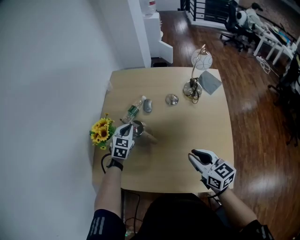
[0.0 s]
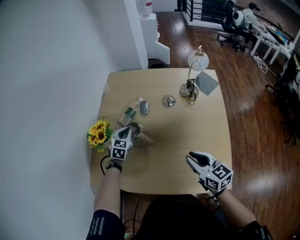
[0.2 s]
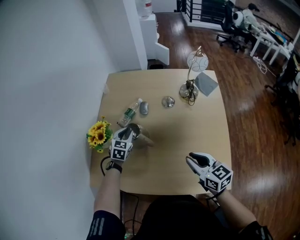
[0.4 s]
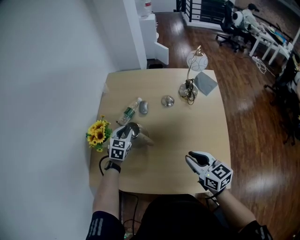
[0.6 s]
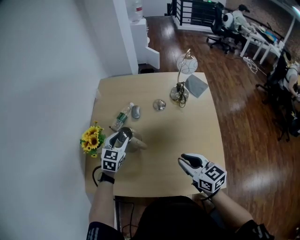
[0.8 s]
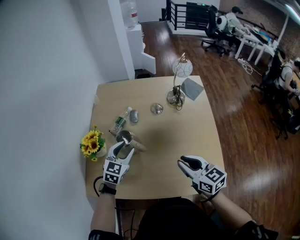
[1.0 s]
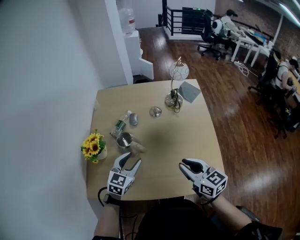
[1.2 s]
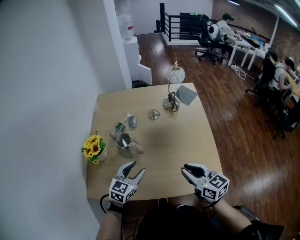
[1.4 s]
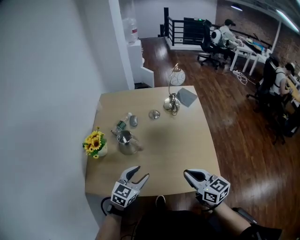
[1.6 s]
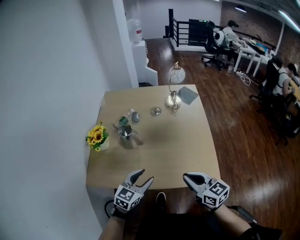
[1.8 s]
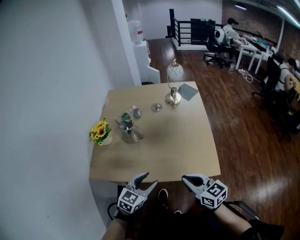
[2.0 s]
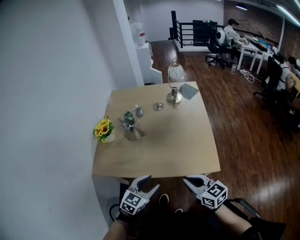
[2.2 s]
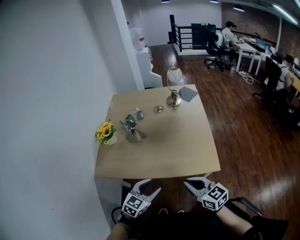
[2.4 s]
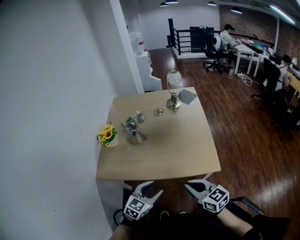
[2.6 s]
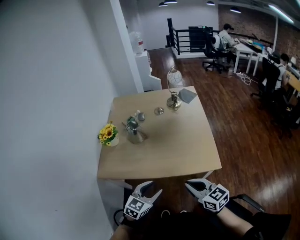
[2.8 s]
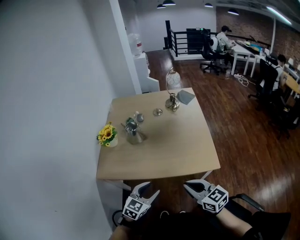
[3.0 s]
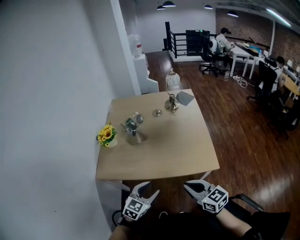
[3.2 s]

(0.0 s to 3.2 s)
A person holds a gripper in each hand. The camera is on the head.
0.0 s - 1.6 s: The left gripper moves backward, some 30 cm, changes its angle by roughly 30 degrees, and opens its fingers. Meanwhile the right gripper heads backward, covering some 15 cm.
1.6 s - 3.2 s: Both grippers move backward, roughly 25 cm.

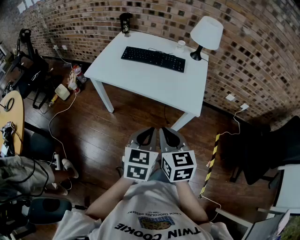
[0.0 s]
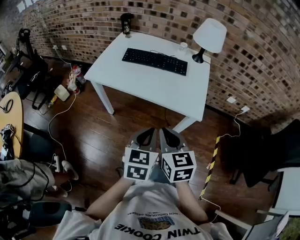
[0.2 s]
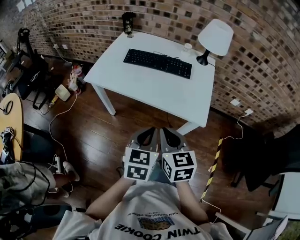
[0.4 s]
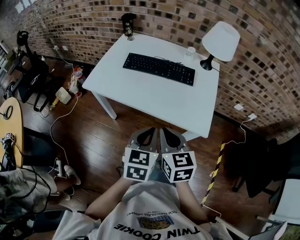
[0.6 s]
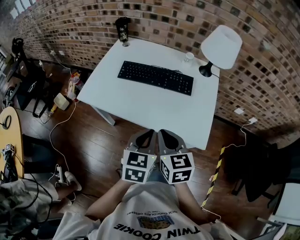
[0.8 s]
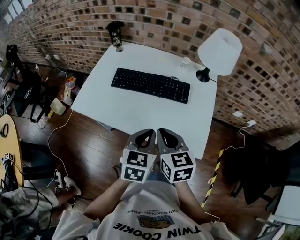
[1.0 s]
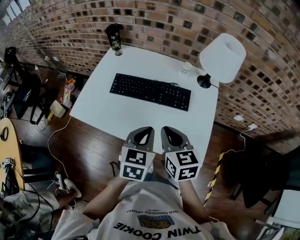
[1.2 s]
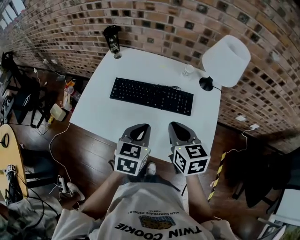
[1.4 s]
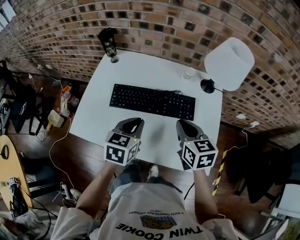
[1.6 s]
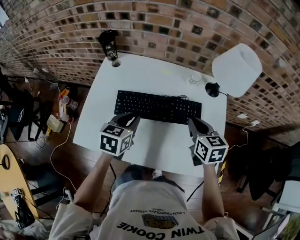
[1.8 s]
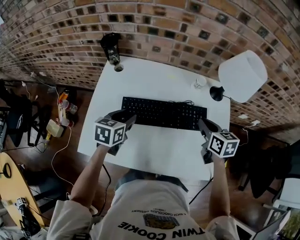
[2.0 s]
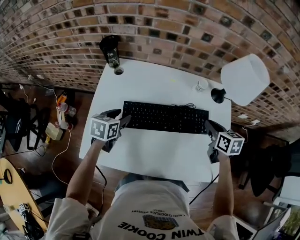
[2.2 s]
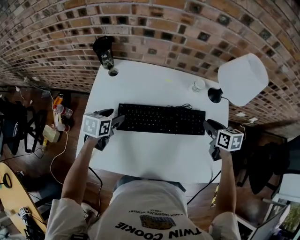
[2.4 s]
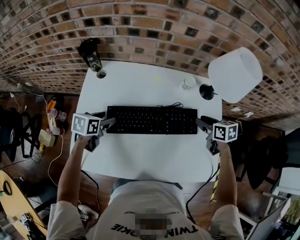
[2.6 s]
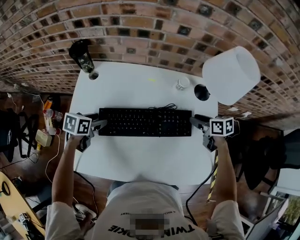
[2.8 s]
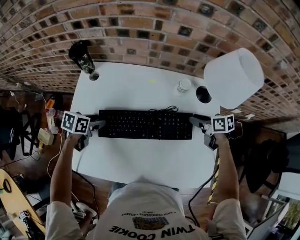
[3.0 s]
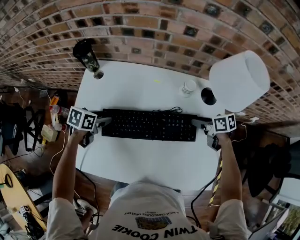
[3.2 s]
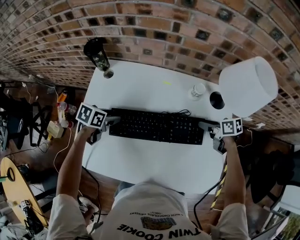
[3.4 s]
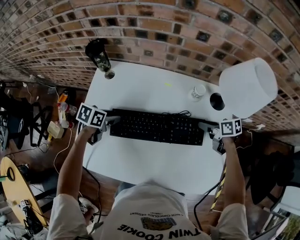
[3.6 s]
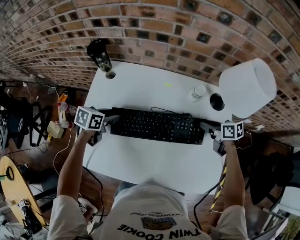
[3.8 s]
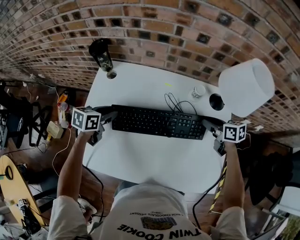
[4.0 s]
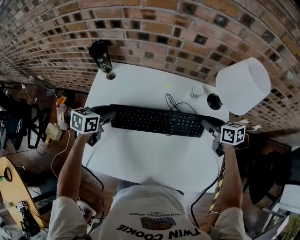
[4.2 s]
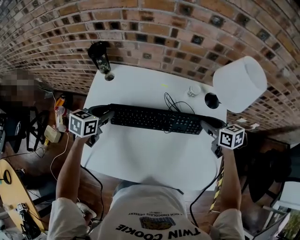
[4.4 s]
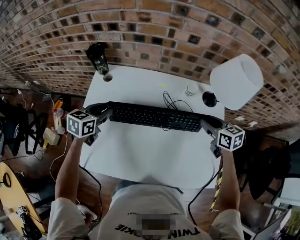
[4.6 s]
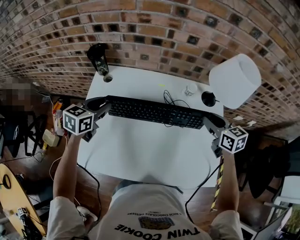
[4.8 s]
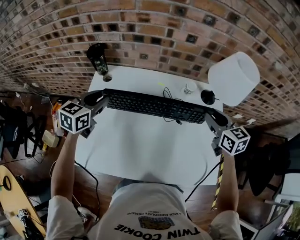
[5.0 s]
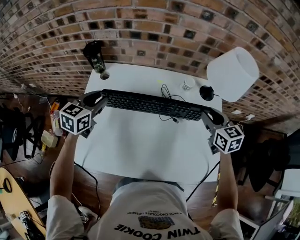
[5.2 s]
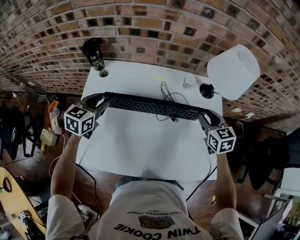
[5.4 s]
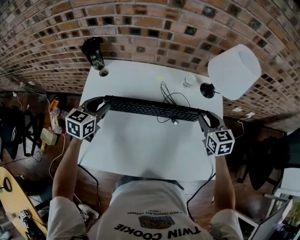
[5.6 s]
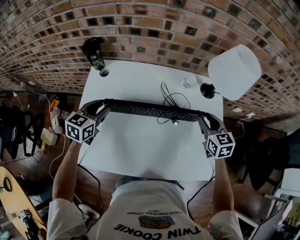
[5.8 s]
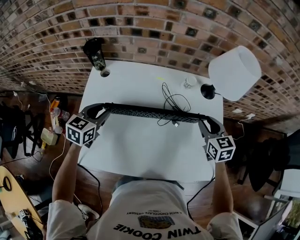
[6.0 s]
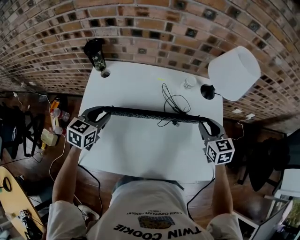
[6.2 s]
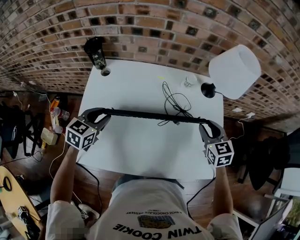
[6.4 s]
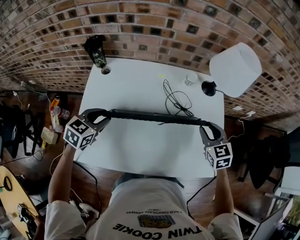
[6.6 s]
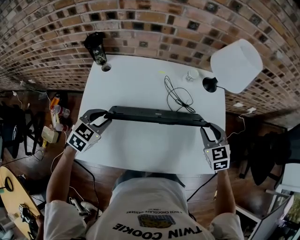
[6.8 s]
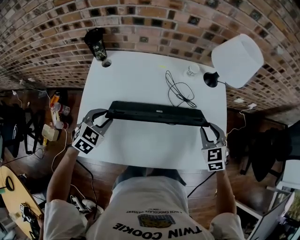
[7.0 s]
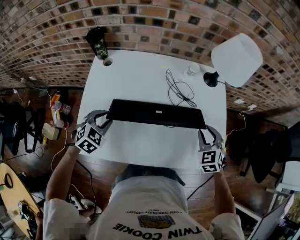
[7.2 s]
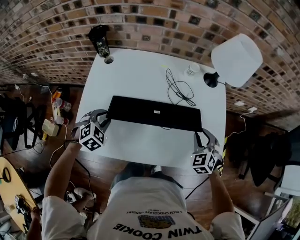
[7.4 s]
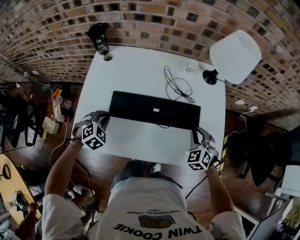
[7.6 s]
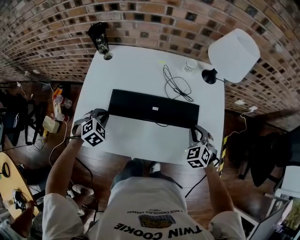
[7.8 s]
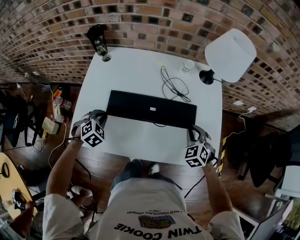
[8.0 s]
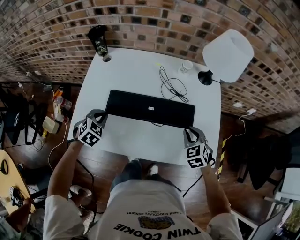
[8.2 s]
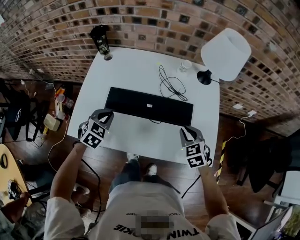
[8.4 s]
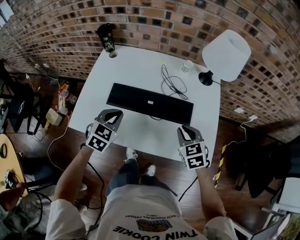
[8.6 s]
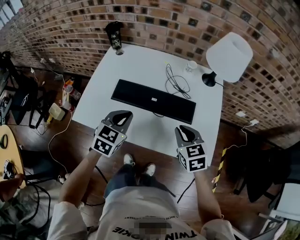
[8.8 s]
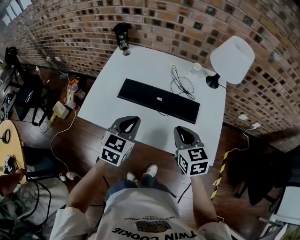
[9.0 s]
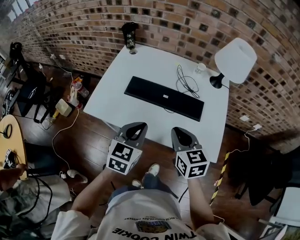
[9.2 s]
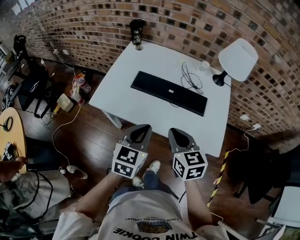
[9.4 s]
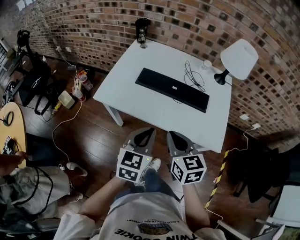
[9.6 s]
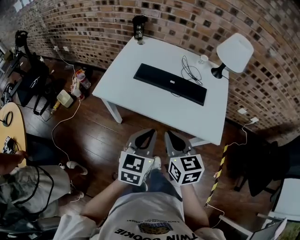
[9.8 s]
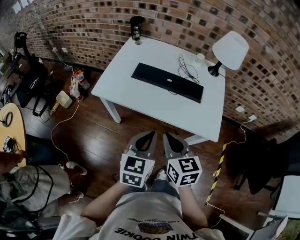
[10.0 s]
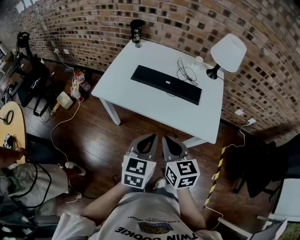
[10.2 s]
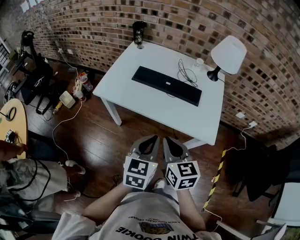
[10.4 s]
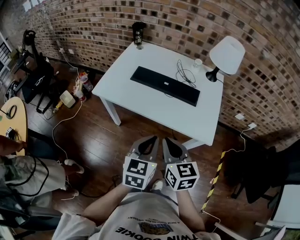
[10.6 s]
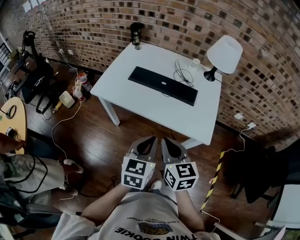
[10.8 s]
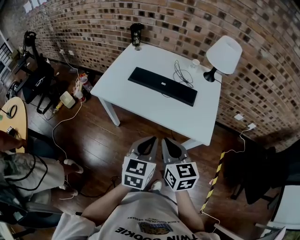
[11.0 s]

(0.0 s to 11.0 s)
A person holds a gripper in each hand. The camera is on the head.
0.0 s - 1.6 s: Both grippers are carried forward, about 40 cm.
1.6 s - 3.2 s: The right gripper goes about 25 cm forward, downward and to the right, turns by some 40 degrees, and opens up. Meanwhile the left gripper goes approximately 25 cm forward, to the left and downward, rotates roughly 30 degrees, and opens.
3.2 s - 4.8 s: The two grippers go approximately 15 cm upward. The right gripper rotates approximately 40 degrees, while the left gripper rotates approximately 30 degrees, and closes up.
4.8 s - 6.2 s: The grippers both shift backward by approximately 5 cm.
6.2 s - 7.8 s: The two grippers go roughly 15 cm backward and downward. The left gripper changes its angle by approximately 50 degrees, and closes its fingers. Meanwhile the right gripper rotates about 40 degrees.
7.8 s - 9.4 s: The left gripper heads backward, upward and to the right, covering some 30 cm, and tips its fingers upward by about 40 degrees; the right gripper goes approximately 25 cm backward, to the left and upward, and turns by approximately 50 degrees.
9.4 s - 11.0 s: The left gripper shifts about 15 cm backward and to the right. Meanwhile the right gripper is displaced backward by approximately 15 cm.

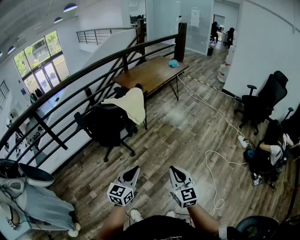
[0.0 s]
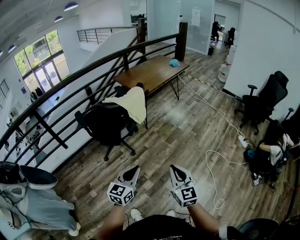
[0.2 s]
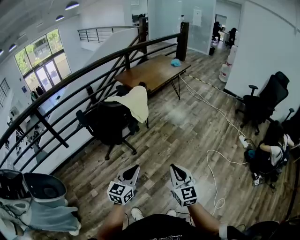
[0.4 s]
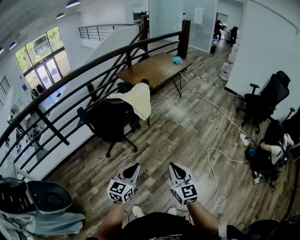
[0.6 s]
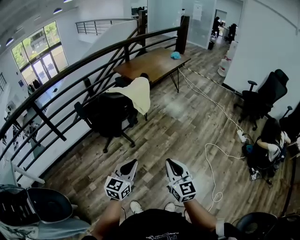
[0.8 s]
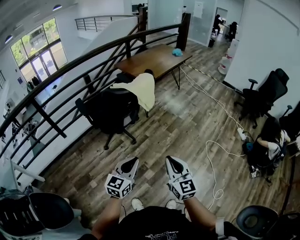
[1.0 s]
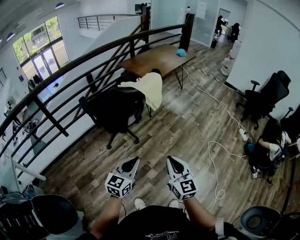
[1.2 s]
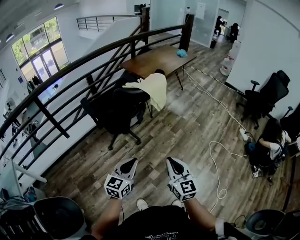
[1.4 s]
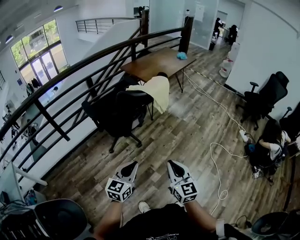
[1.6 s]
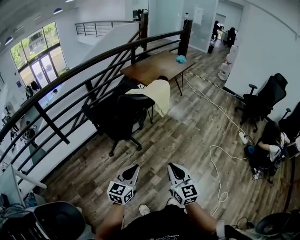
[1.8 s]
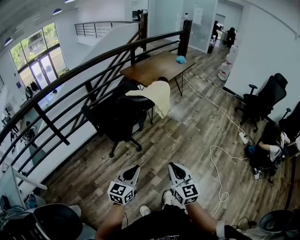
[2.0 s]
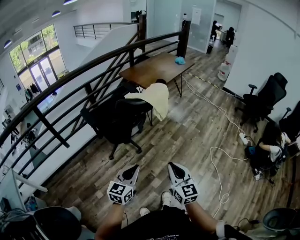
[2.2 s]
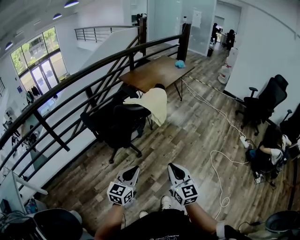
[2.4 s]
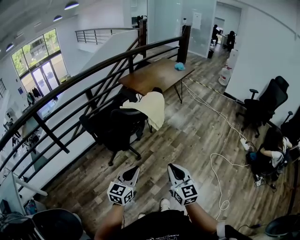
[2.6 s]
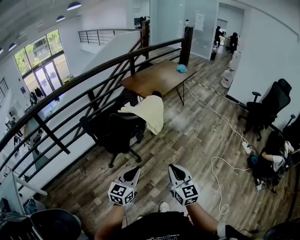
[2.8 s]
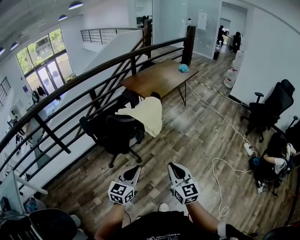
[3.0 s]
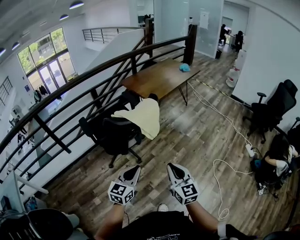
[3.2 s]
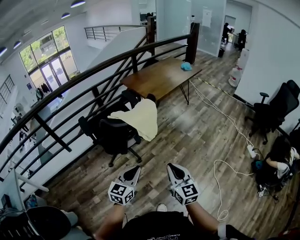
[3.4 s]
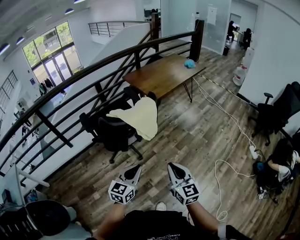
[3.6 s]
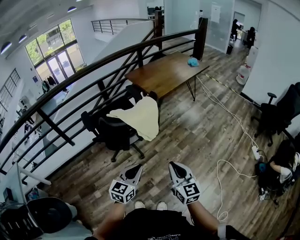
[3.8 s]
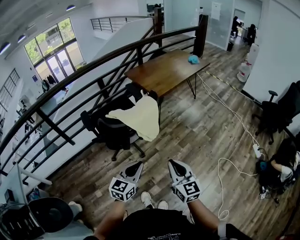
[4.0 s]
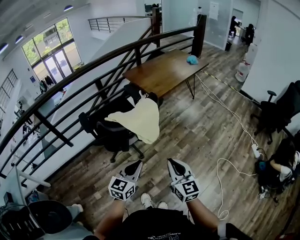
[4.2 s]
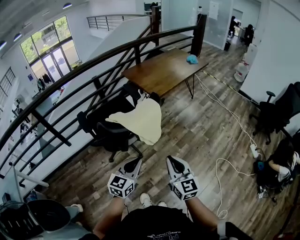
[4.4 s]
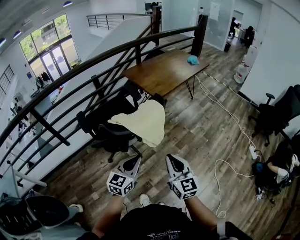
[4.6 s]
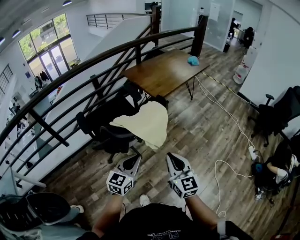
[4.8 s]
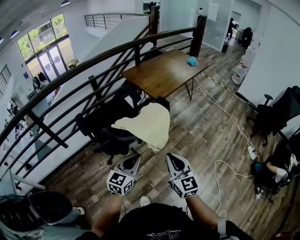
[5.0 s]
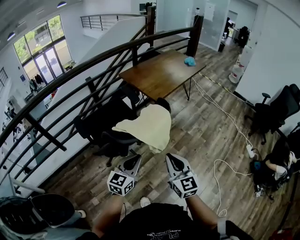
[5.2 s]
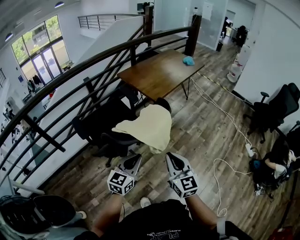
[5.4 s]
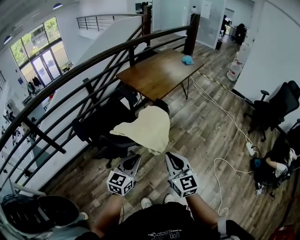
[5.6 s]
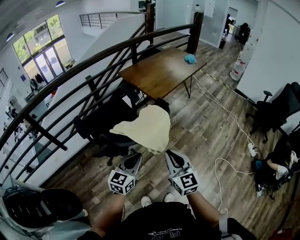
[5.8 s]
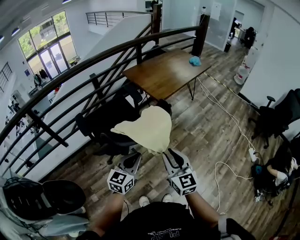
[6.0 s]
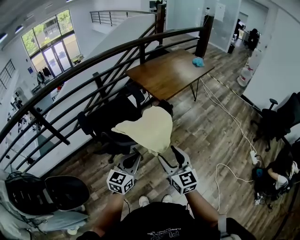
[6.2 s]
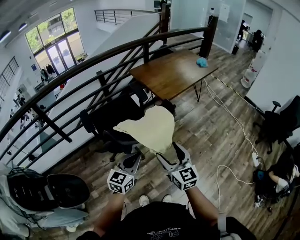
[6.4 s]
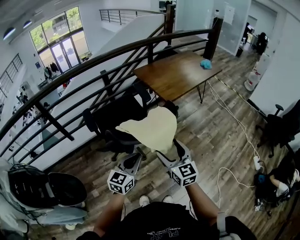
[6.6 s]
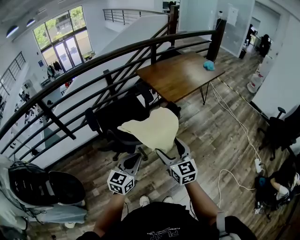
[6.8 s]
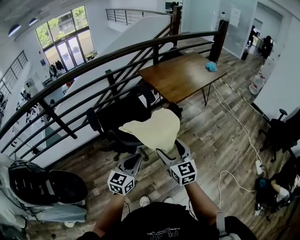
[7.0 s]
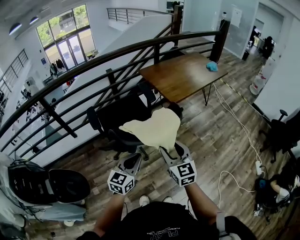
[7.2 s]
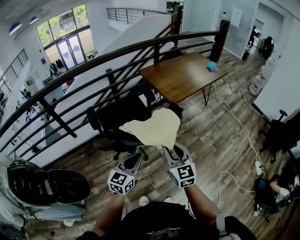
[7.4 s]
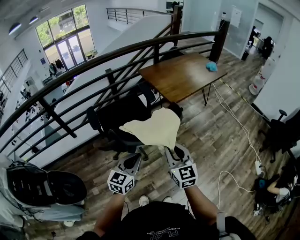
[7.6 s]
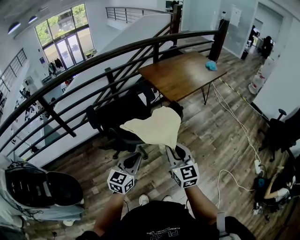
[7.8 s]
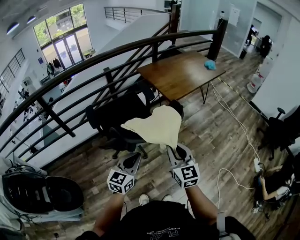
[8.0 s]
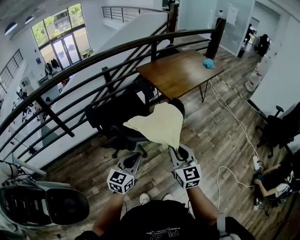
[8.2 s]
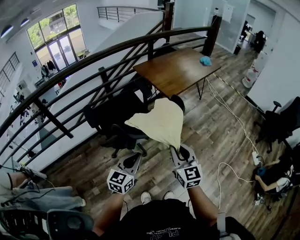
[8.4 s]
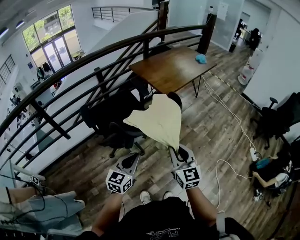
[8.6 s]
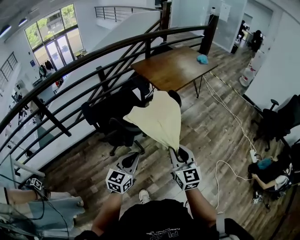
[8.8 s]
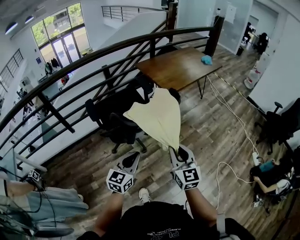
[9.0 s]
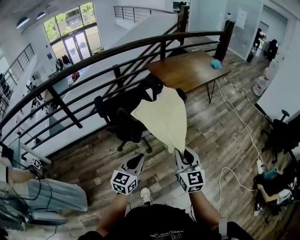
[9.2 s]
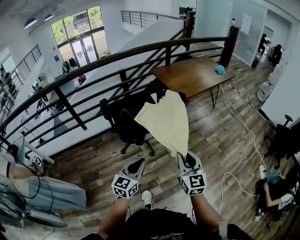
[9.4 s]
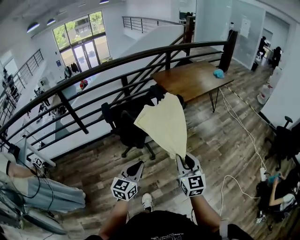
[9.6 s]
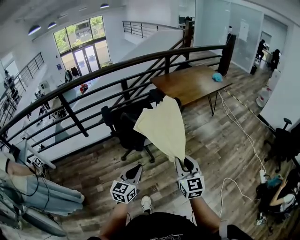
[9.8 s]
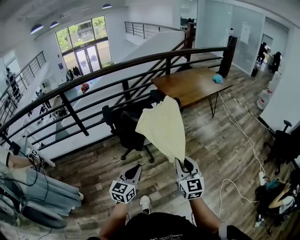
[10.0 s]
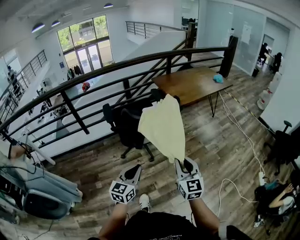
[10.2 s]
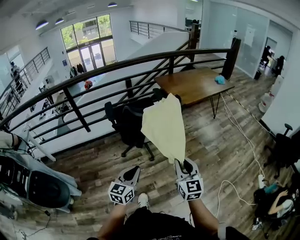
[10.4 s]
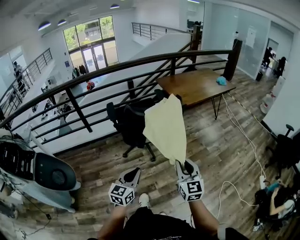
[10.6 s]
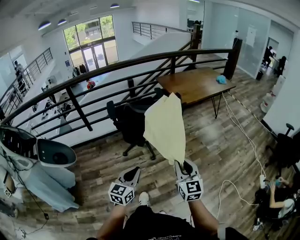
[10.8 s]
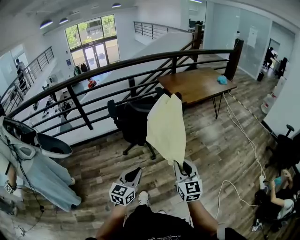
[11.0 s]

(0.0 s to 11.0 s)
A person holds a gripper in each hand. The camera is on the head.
0.0 s - 1.6 s: The grippers both shift to the left by about 15 cm.
1.6 s - 3.2 s: Both grippers travel together forward and to the right, approximately 15 cm.
3.2 s - 4.8 s: Both grippers travel together forward, about 15 cm.
4.8 s - 6.2 s: The right gripper heads forward, covering approximately 5 cm, and opens up.
6.2 s - 7.8 s: The right gripper closes up.
7.8 s - 9.4 s: Both grippers travel together backward, roughly 10 cm.
9.4 s - 11.0 s: Both grippers move backward, some 10 cm.
